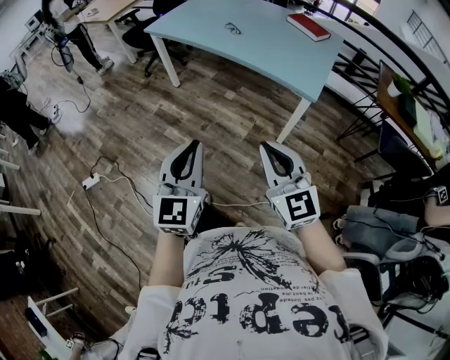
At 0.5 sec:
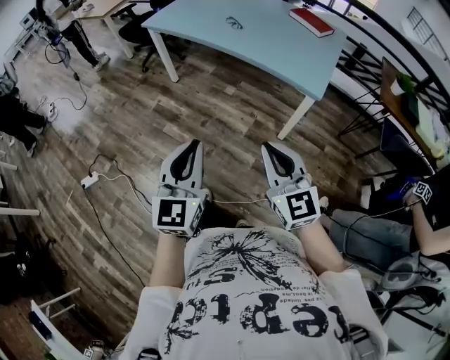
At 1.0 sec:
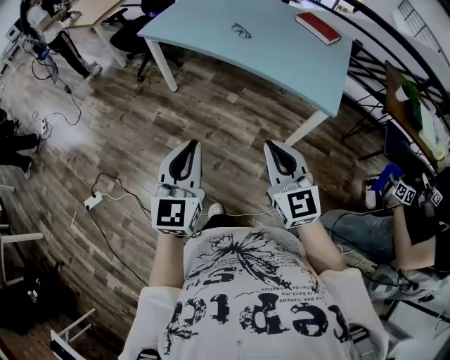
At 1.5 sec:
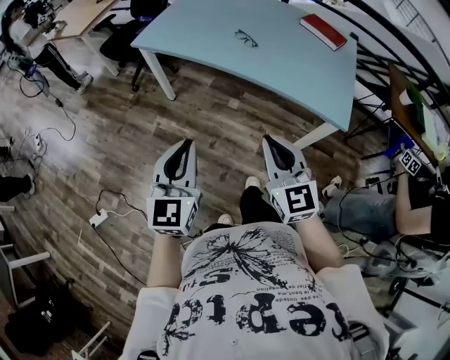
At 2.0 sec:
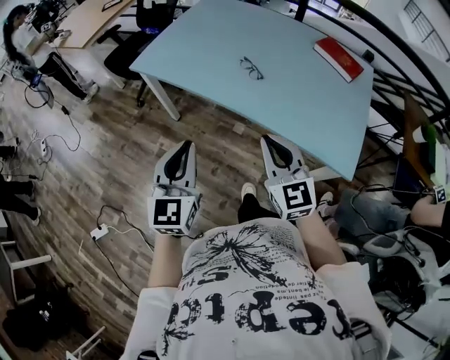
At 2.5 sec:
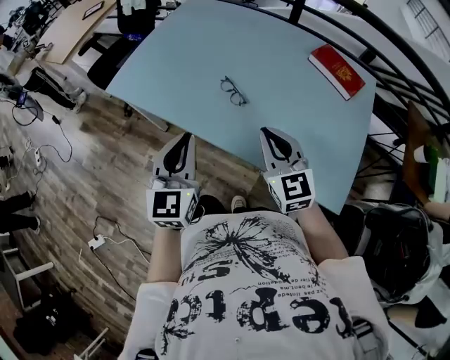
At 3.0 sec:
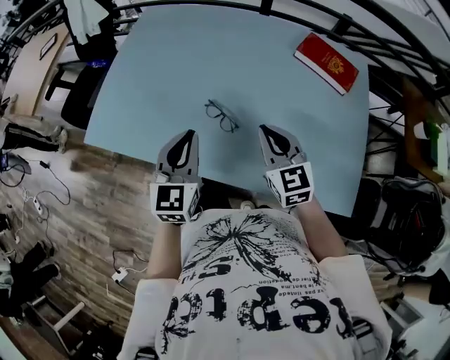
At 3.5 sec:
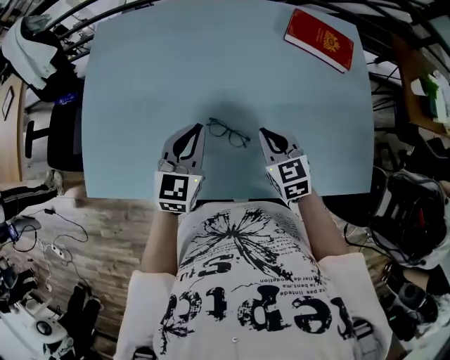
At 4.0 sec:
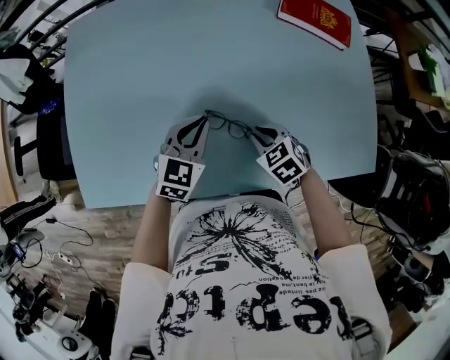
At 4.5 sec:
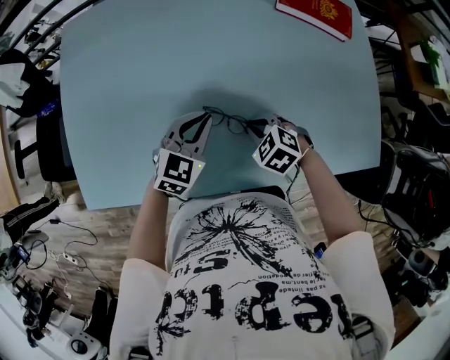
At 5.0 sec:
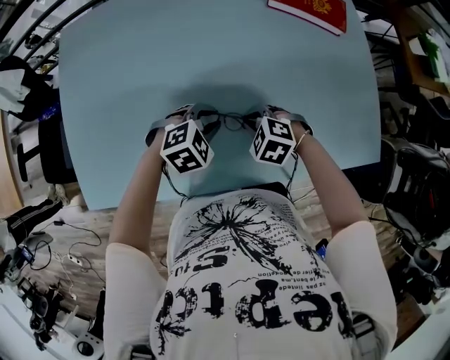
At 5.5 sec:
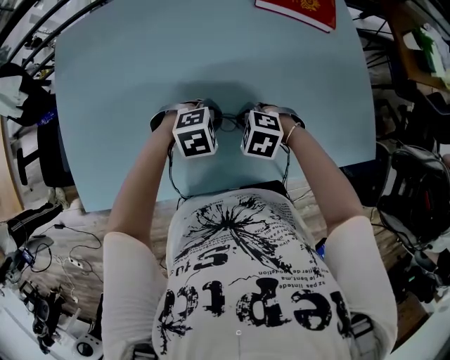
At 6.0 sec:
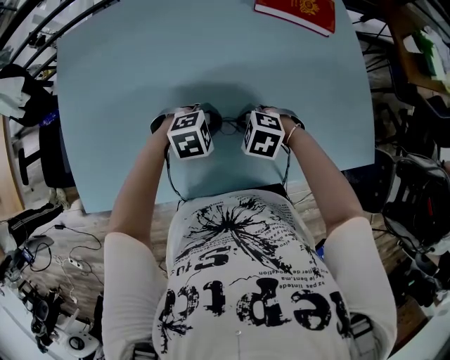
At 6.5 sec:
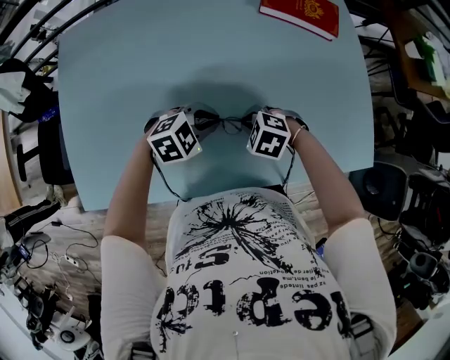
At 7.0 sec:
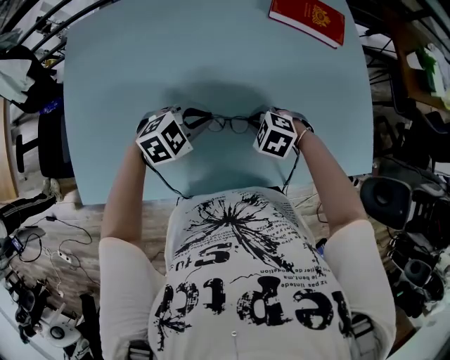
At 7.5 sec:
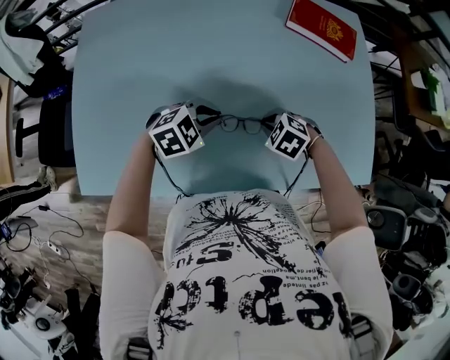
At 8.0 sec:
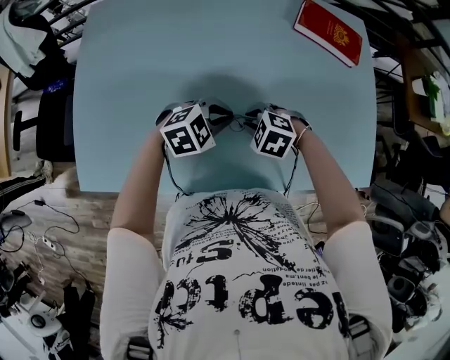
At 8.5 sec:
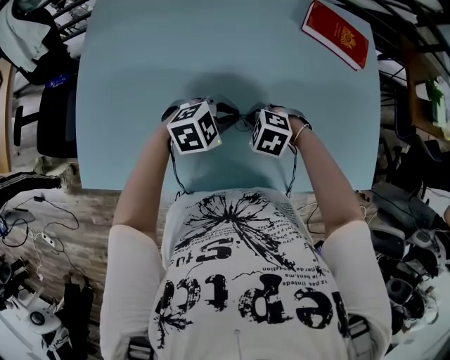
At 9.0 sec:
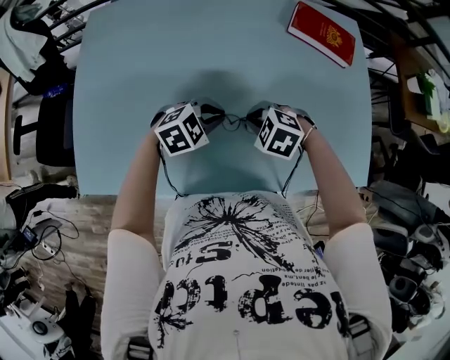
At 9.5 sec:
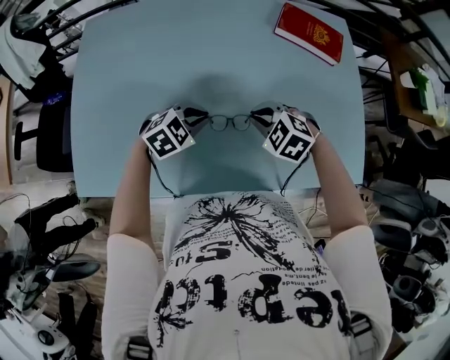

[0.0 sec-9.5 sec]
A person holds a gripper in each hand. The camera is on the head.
0.0 sec to 2.0 sec: The pair of grippers is taken forward, some 50 cm.
2.0 sec to 4.0 sec: The two grippers travel together, approximately 50 cm. The left gripper turns by some 60 degrees. The right gripper angles its fingers downward, by roughly 50 degrees.
4.0 sec to 5.5 sec: The left gripper changes place by approximately 15 cm, and angles its fingers downward, by roughly 40 degrees, while the right gripper changes its angle by approximately 30 degrees.
5.5 sec to 7.5 sec: The left gripper ends up some 10 cm from where it was, and rotates some 20 degrees.
7.5 sec to 9.5 sec: The right gripper travels upward by about 10 cm.

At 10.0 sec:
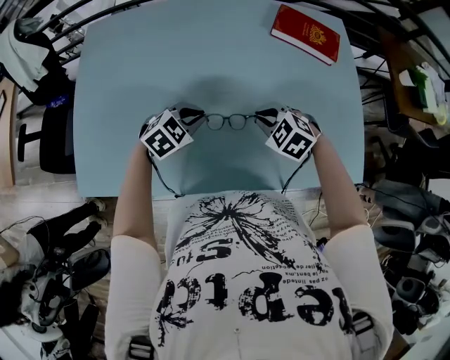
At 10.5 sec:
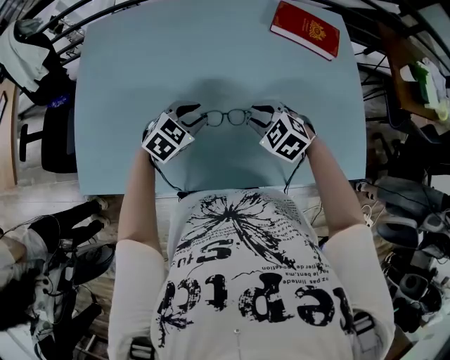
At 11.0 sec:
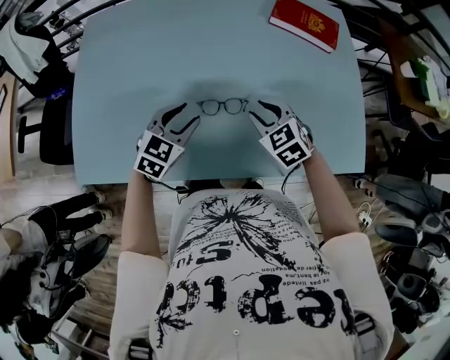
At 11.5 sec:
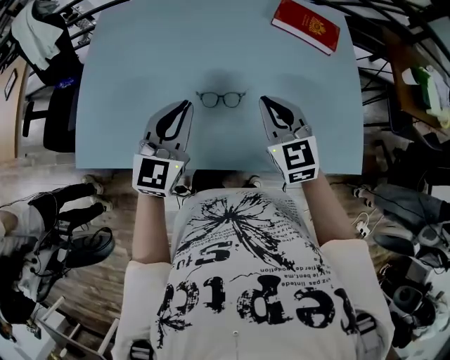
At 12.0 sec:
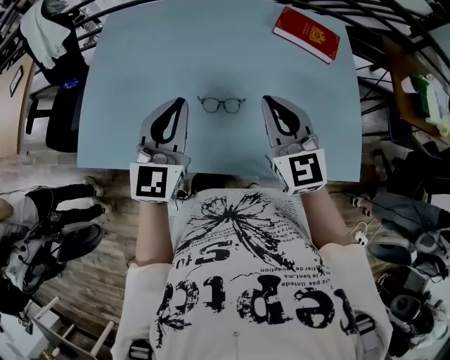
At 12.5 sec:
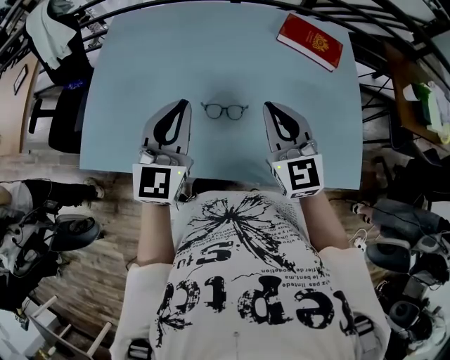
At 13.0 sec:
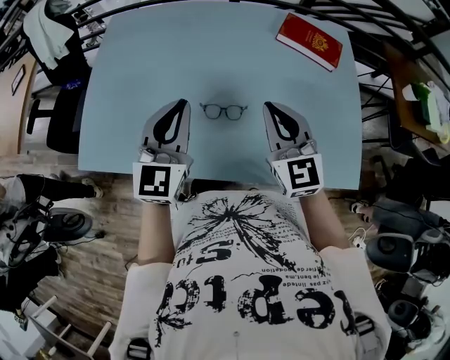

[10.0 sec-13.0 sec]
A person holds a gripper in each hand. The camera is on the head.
10.0 sec to 11.5 sec: The right gripper is displaced upward by some 15 cm, tilts its fingers about 40 degrees upward, and opens, then closes again, while the left gripper moves upward and backward, roughly 20 cm, tilts its fingers roughly 40 degrees upward, and opens and closes again.
11.5 sec to 13.0 sec: The grippers both shift upward by about 5 cm.

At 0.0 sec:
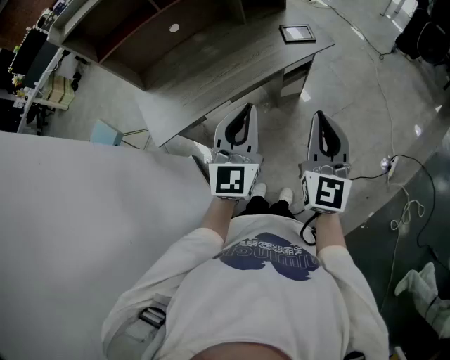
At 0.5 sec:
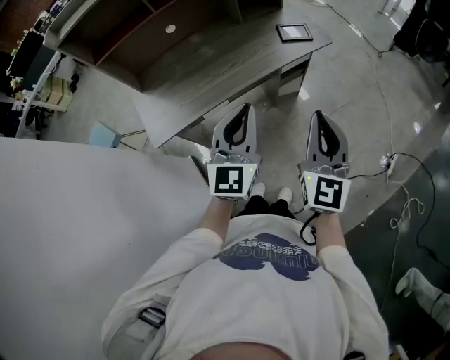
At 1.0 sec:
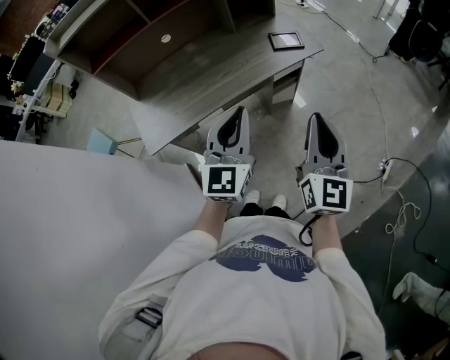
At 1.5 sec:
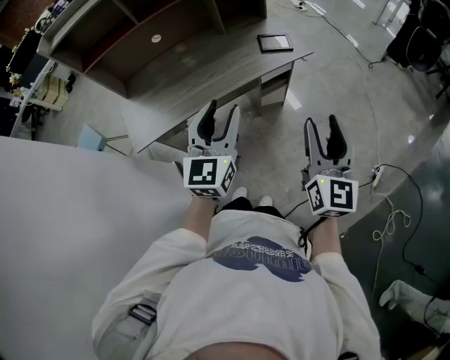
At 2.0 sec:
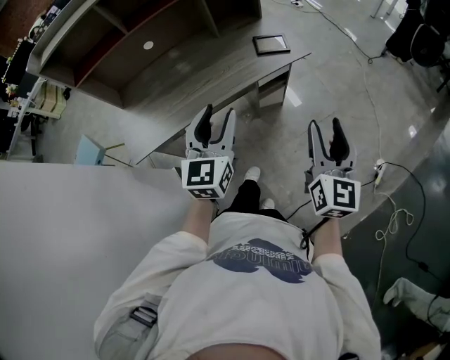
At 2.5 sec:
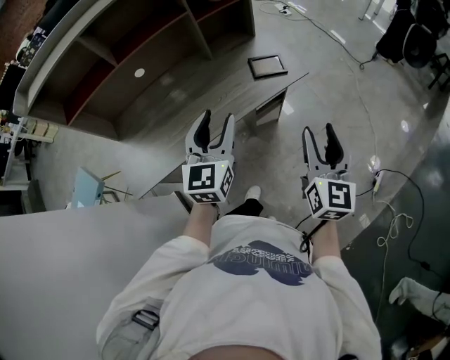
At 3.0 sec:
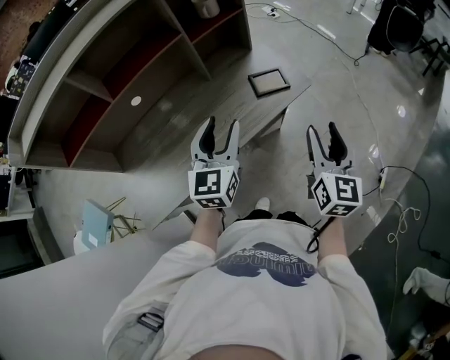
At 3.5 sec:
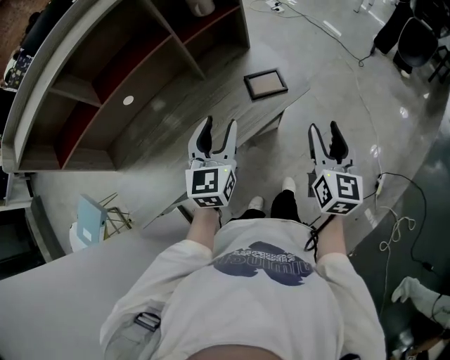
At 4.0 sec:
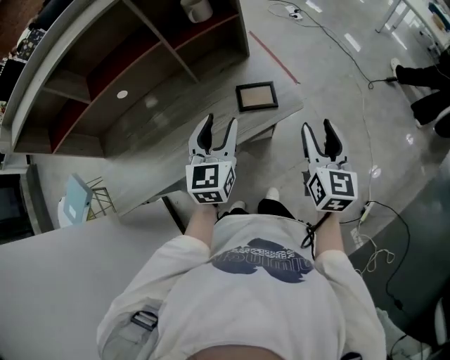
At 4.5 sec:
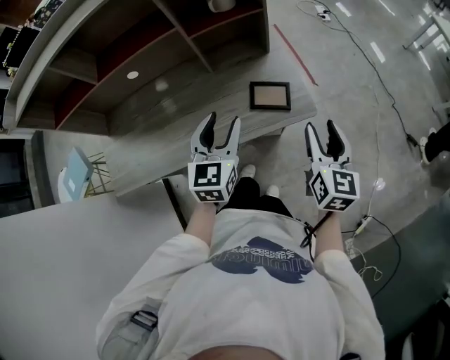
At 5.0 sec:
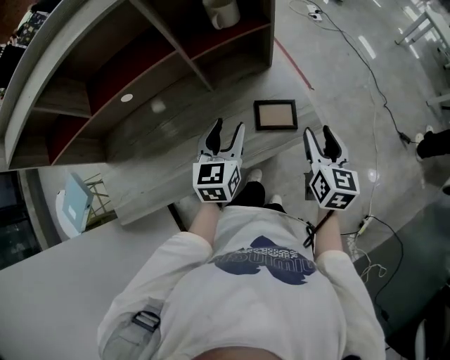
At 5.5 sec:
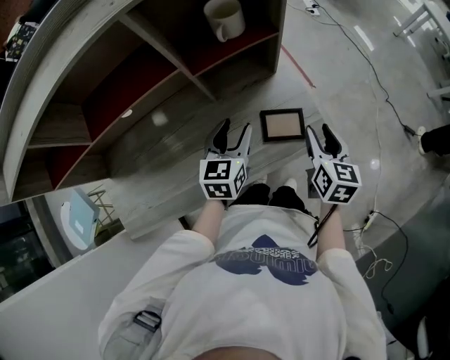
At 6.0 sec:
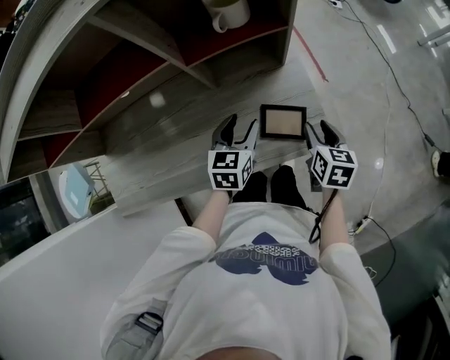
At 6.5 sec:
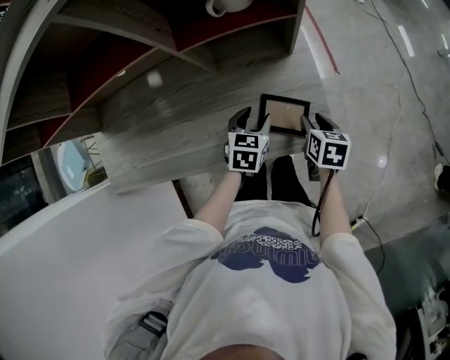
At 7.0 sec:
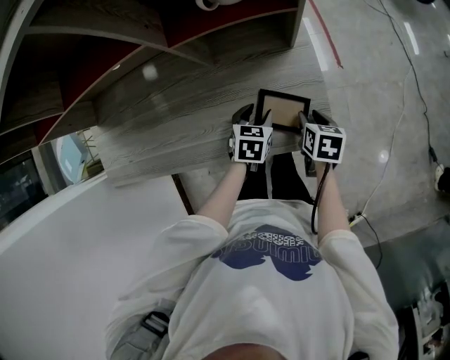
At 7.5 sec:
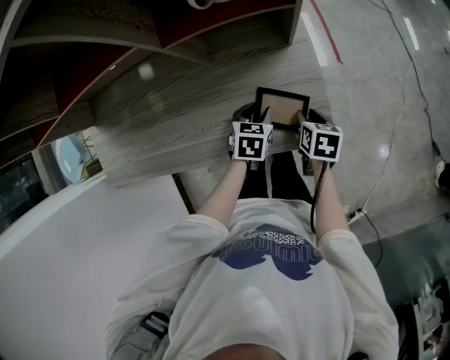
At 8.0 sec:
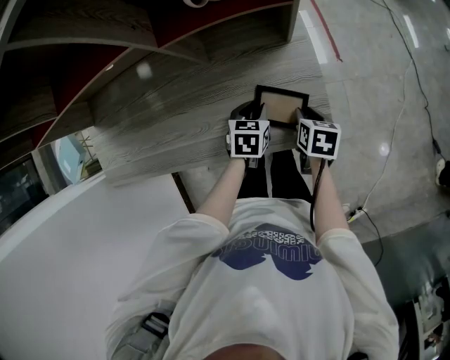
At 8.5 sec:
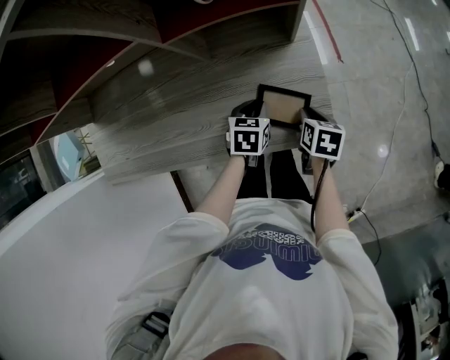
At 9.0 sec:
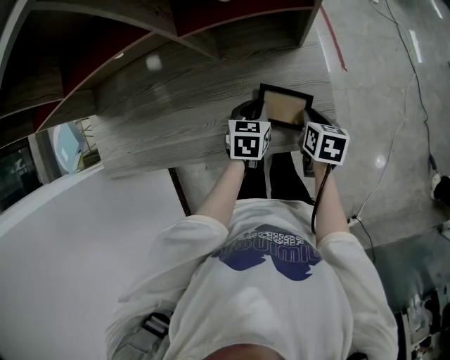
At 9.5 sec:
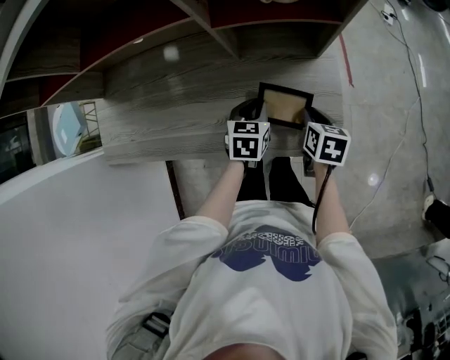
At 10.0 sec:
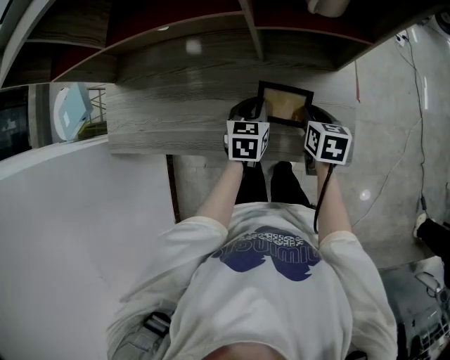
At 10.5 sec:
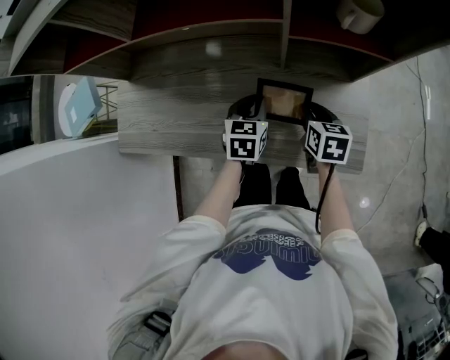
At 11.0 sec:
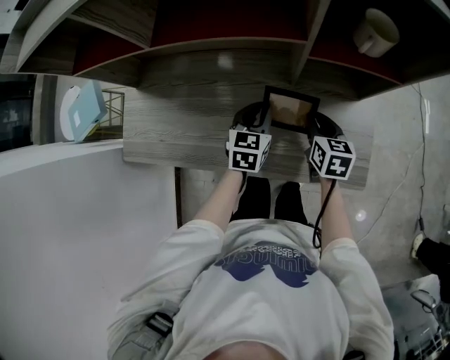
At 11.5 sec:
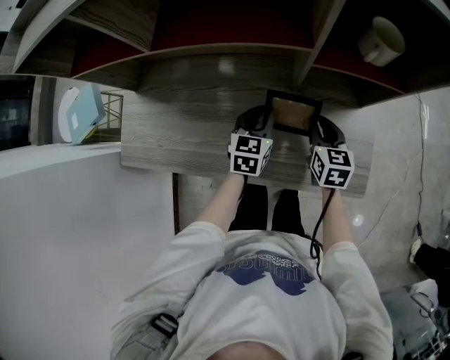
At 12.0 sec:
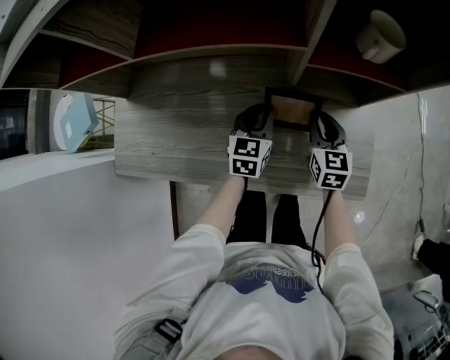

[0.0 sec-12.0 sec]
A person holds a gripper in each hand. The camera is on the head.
0.0 sec to 2.0 sec: The right gripper goes about 15 cm to the right and forward, and opens its fingers. Meanwhile the left gripper heads forward and to the right, covering roughly 10 cm, and opens.
2.0 sec to 4.0 sec: Both grippers move forward, approximately 30 cm.
4.0 sec to 6.0 sec: Both grippers move forward and downward, some 25 cm. The right gripper swivels approximately 30 degrees. Meanwhile the left gripper turns by approximately 20 degrees.
6.0 sec to 8.0 sec: The two grippers go roughly 15 cm downward. The left gripper rotates approximately 20 degrees, and closes its fingers. The right gripper rotates approximately 20 degrees.
8.0 sec to 10.0 sec: The right gripper is displaced to the left, upward and forward by about 15 cm, while the left gripper travels to the left and upward by approximately 15 cm.
10.0 sec to 12.0 sec: Both grippers move forward and to the left, approximately 10 cm. The right gripper changes its angle by roughly 30 degrees.

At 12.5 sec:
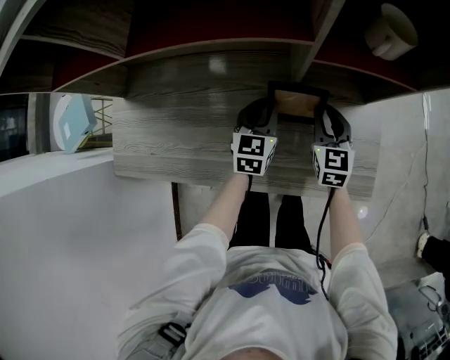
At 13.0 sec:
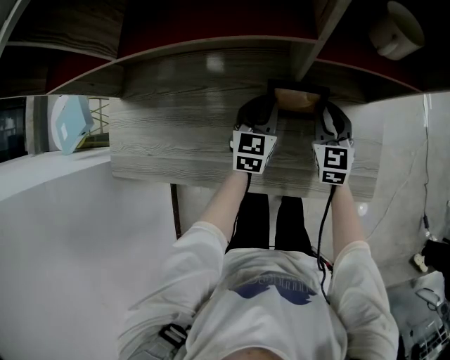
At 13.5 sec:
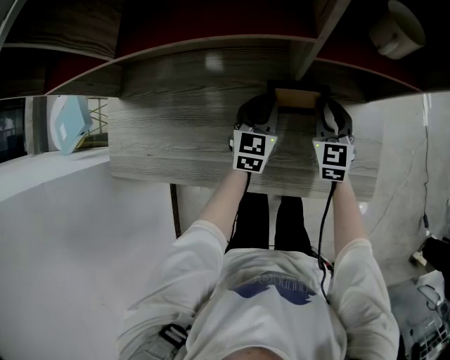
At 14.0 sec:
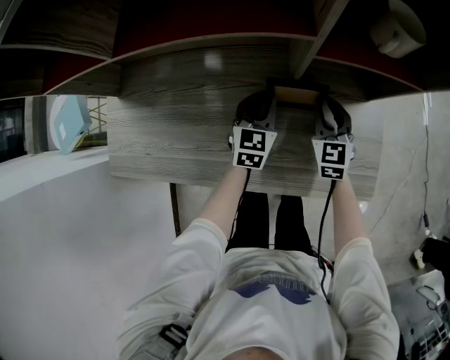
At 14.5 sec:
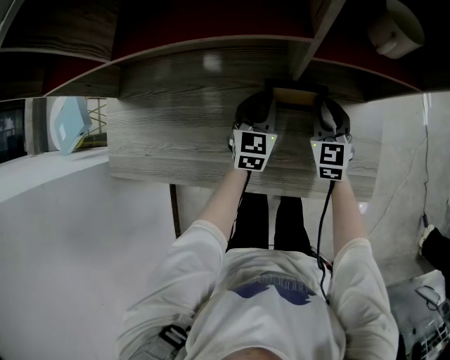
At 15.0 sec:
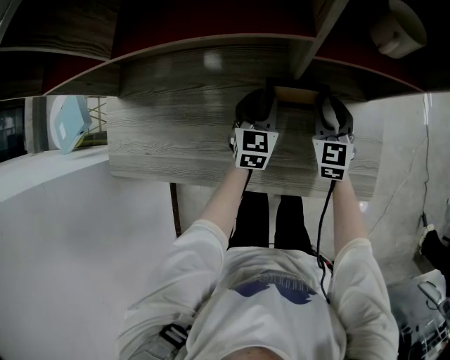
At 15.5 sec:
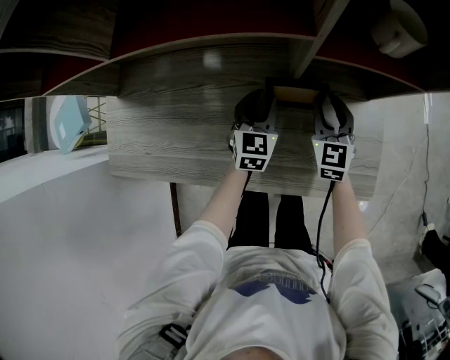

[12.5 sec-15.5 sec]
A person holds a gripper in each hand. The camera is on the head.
12.5 sec to 15.5 sec: The grippers stay close to where they were, moving slightly.
